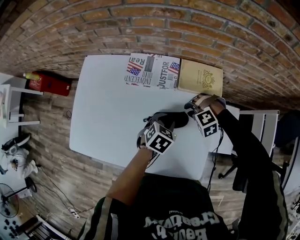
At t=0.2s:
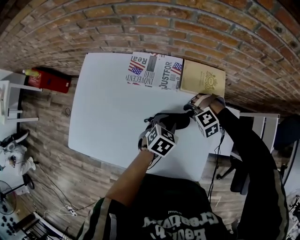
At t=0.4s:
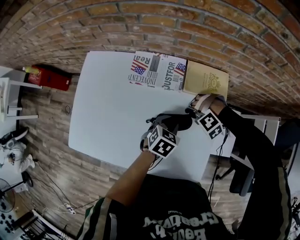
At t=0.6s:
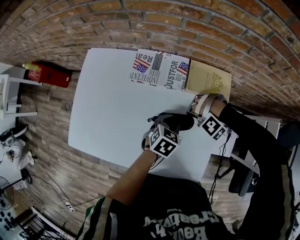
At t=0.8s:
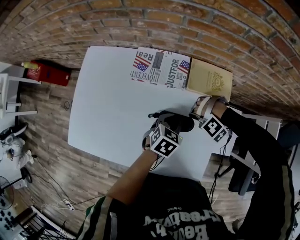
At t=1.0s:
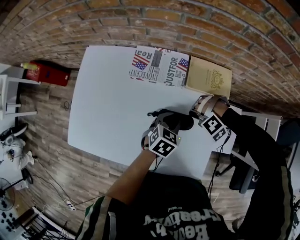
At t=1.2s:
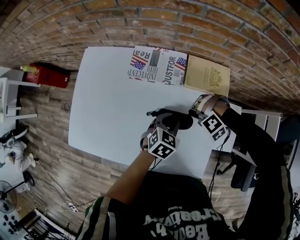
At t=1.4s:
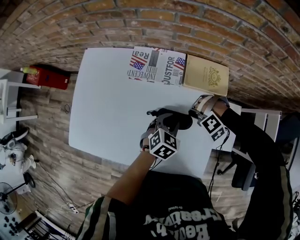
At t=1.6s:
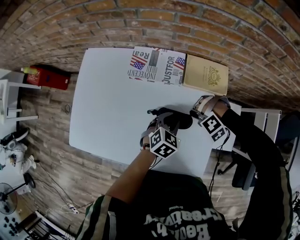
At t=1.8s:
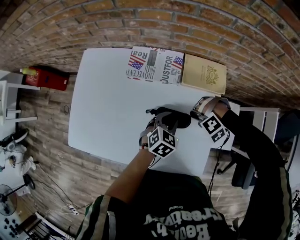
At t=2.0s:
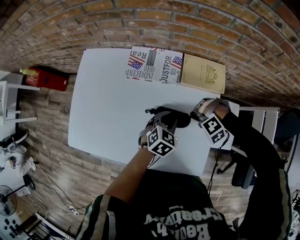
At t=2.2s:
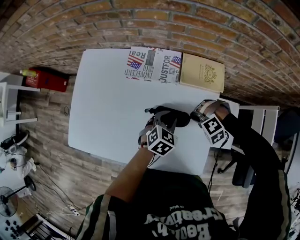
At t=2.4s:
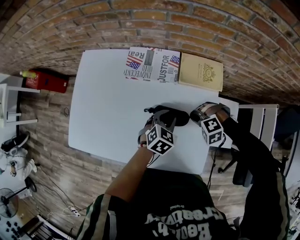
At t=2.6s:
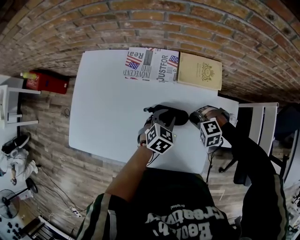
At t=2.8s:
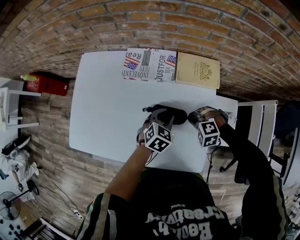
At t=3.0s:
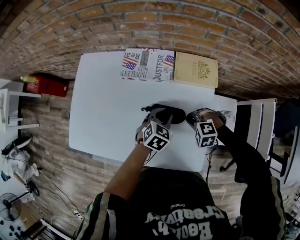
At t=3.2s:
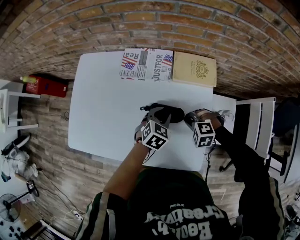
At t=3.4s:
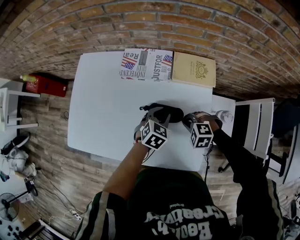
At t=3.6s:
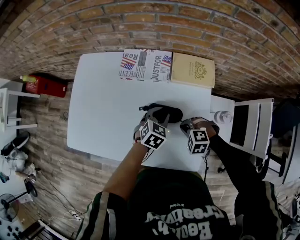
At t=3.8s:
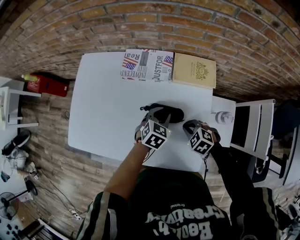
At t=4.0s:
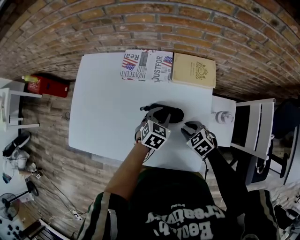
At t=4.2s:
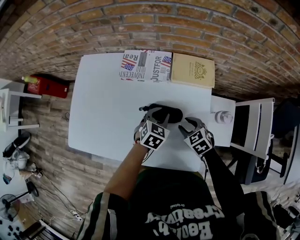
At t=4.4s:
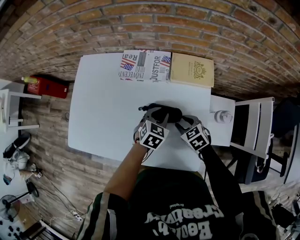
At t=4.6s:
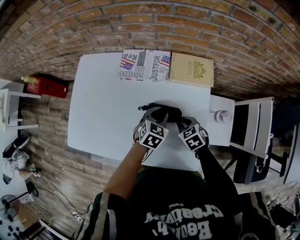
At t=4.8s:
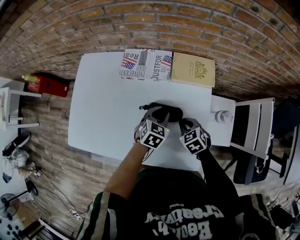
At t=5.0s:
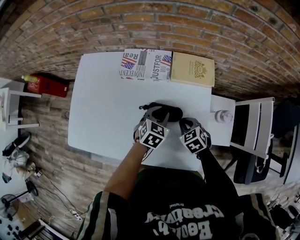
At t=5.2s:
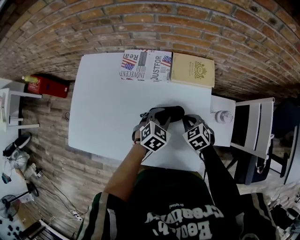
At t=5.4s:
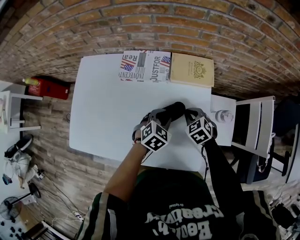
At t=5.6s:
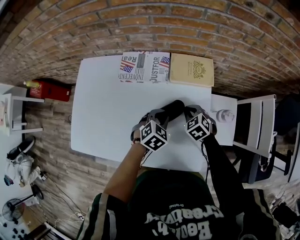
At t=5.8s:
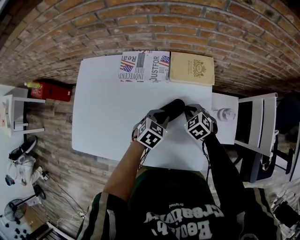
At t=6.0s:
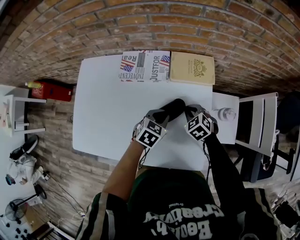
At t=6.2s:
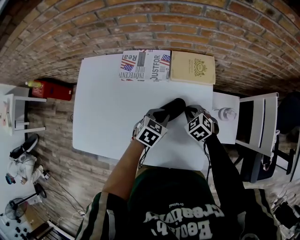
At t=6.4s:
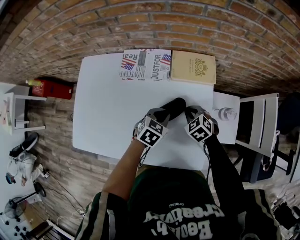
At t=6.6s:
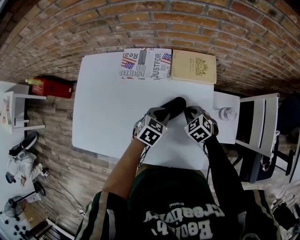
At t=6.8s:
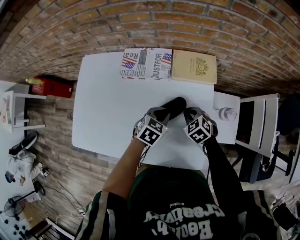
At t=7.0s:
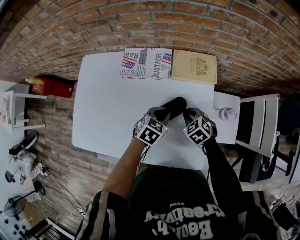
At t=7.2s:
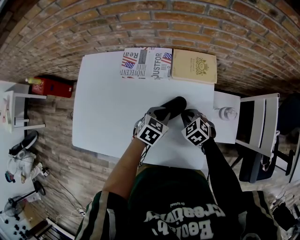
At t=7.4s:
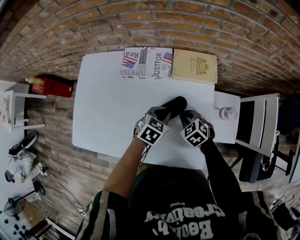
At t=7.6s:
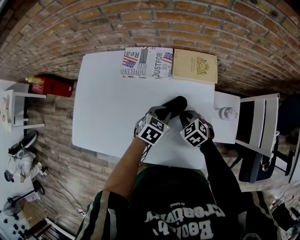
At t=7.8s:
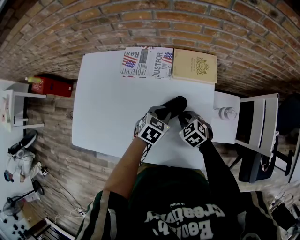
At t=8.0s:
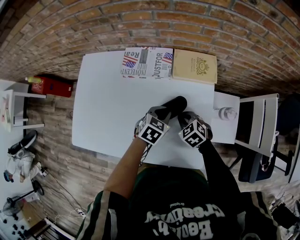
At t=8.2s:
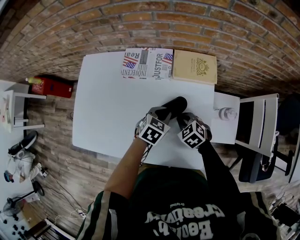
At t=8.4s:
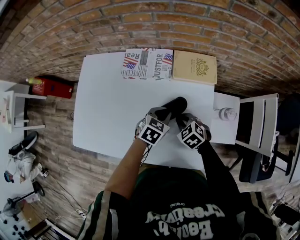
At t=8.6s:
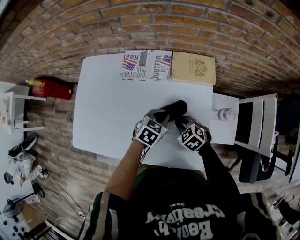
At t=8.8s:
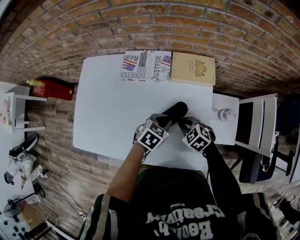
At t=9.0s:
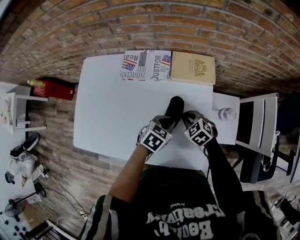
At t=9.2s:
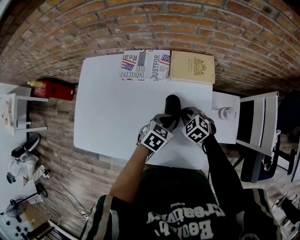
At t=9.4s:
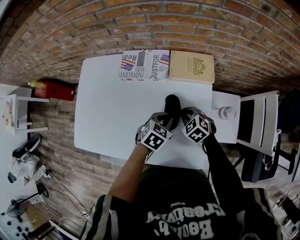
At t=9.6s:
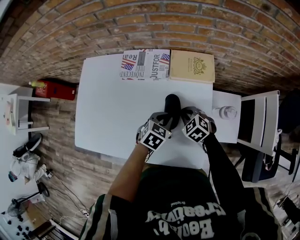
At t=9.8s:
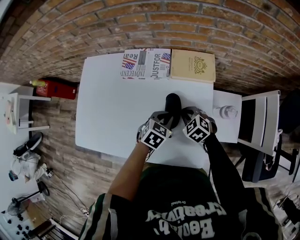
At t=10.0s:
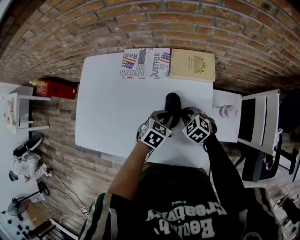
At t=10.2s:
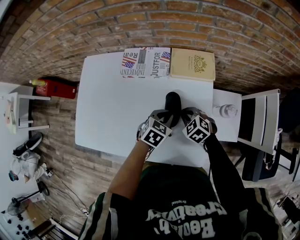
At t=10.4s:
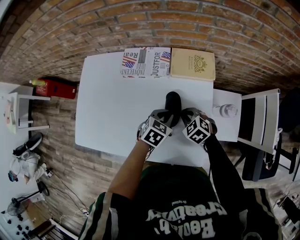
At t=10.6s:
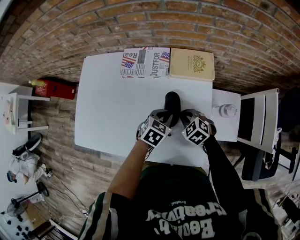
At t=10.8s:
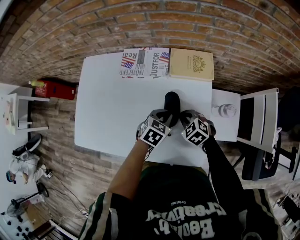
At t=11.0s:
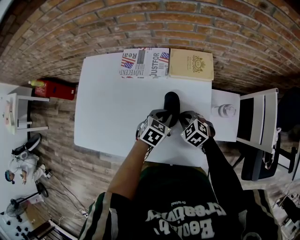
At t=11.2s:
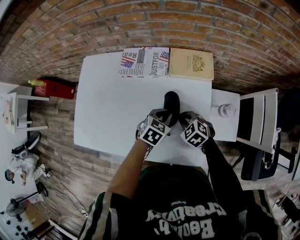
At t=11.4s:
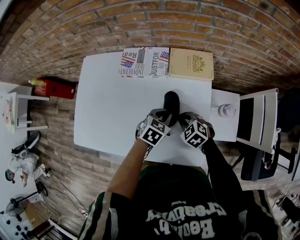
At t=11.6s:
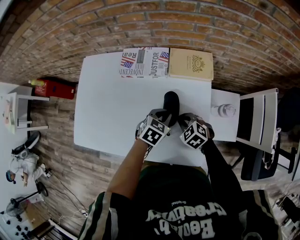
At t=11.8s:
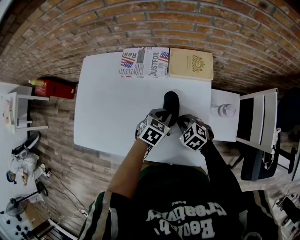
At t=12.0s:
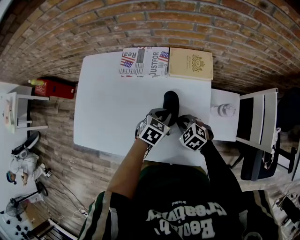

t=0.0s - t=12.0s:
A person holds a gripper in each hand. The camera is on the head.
t=0.0s - t=1.6s: The right gripper closes up.
t=1.6s - t=3.0s: The right gripper swivels some 40 degrees.
t=3.0s - t=4.4s: The right gripper rolls clockwise, seen from behind, by approximately 50 degrees, and opens its fingers.
t=4.4s - t=6.0s: The right gripper goes about 5 cm forward, and closes its fingers.
t=6.0s - t=7.6s: The right gripper ends up roughly 5 cm from where it was.
t=7.6s - t=12.0s: The grippers stay close to where they were, moving slightly.

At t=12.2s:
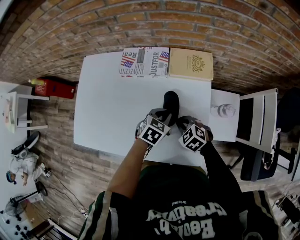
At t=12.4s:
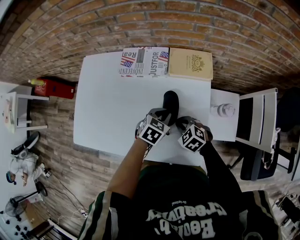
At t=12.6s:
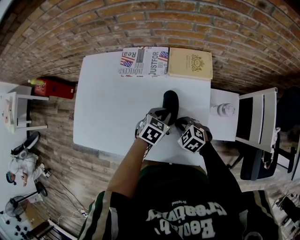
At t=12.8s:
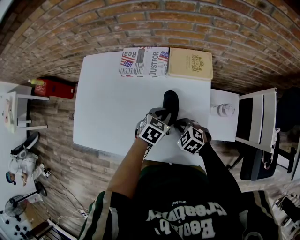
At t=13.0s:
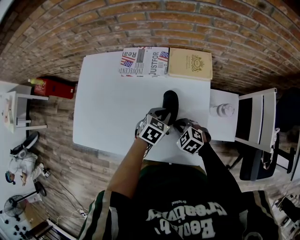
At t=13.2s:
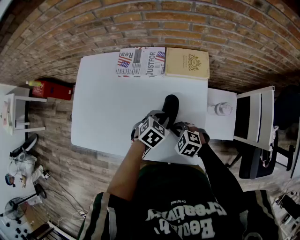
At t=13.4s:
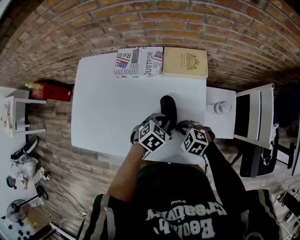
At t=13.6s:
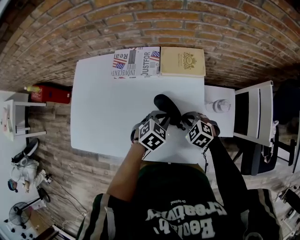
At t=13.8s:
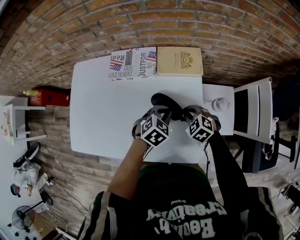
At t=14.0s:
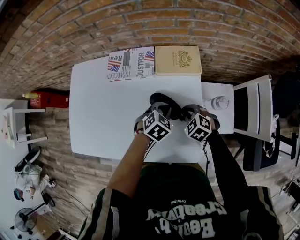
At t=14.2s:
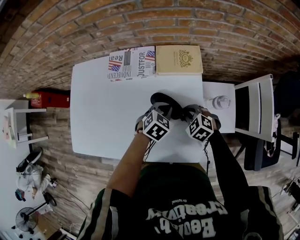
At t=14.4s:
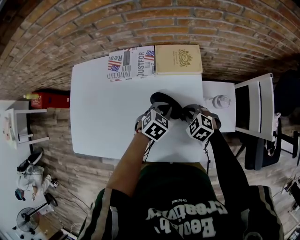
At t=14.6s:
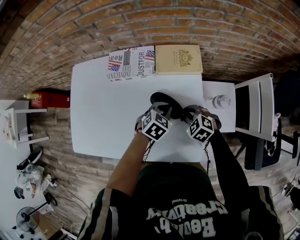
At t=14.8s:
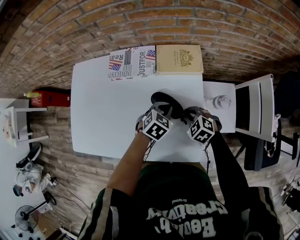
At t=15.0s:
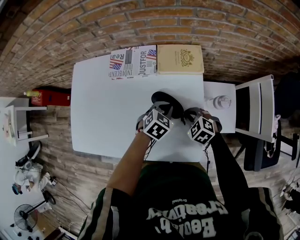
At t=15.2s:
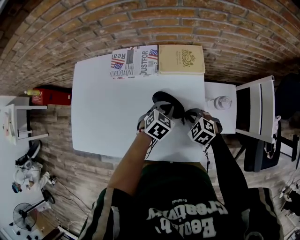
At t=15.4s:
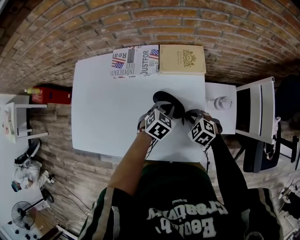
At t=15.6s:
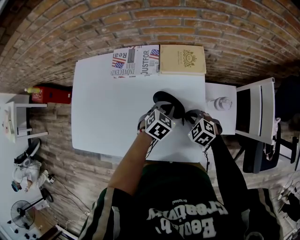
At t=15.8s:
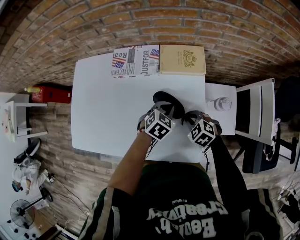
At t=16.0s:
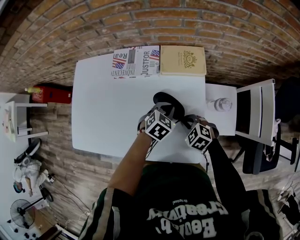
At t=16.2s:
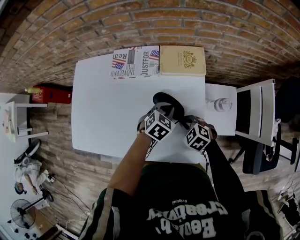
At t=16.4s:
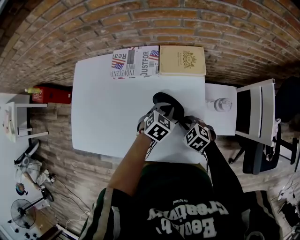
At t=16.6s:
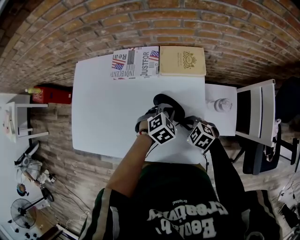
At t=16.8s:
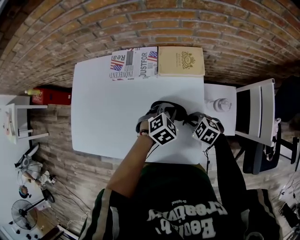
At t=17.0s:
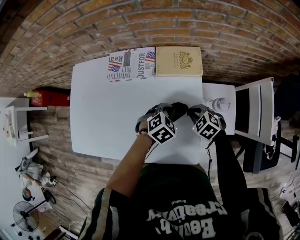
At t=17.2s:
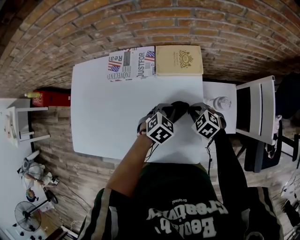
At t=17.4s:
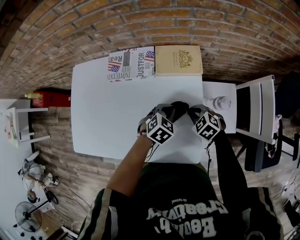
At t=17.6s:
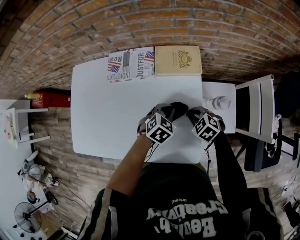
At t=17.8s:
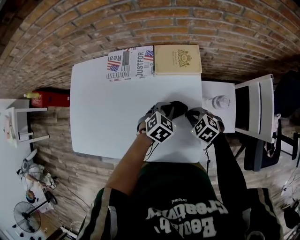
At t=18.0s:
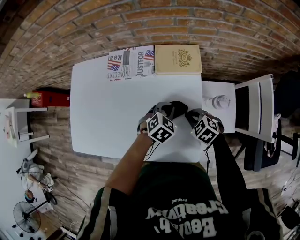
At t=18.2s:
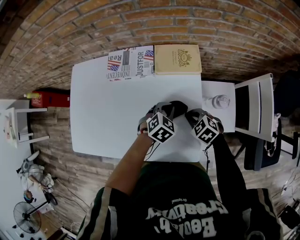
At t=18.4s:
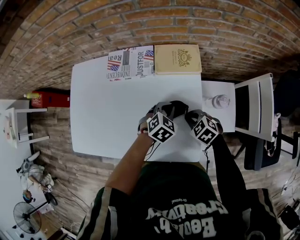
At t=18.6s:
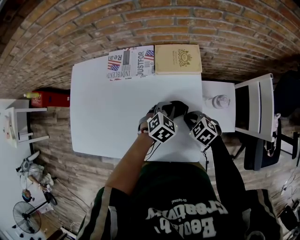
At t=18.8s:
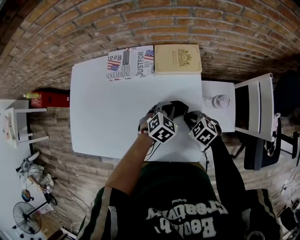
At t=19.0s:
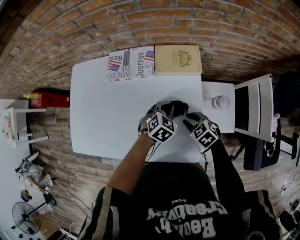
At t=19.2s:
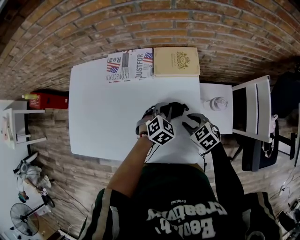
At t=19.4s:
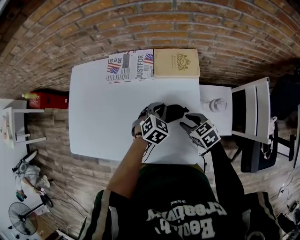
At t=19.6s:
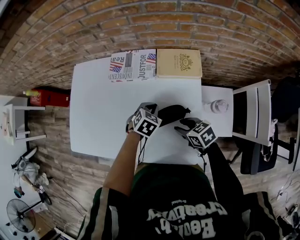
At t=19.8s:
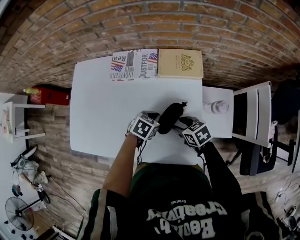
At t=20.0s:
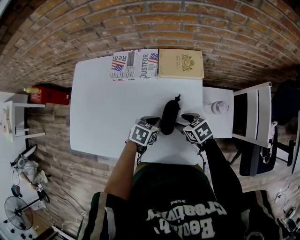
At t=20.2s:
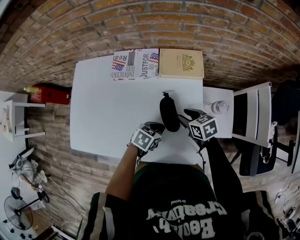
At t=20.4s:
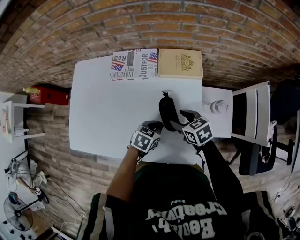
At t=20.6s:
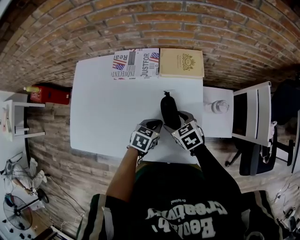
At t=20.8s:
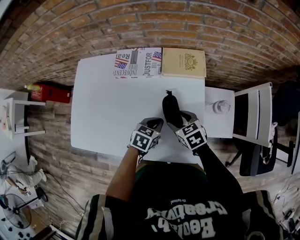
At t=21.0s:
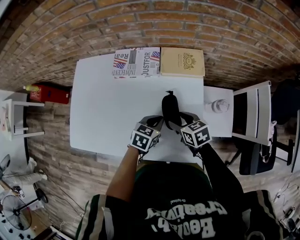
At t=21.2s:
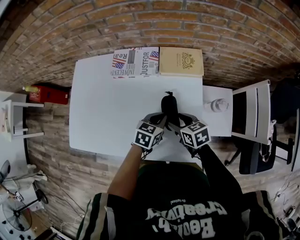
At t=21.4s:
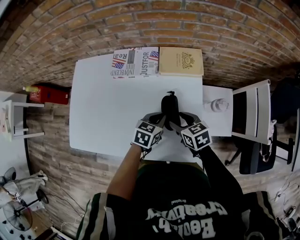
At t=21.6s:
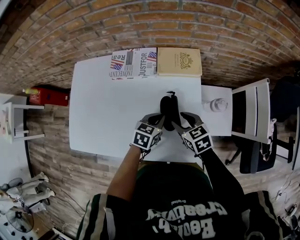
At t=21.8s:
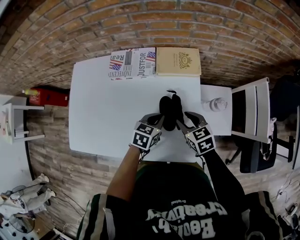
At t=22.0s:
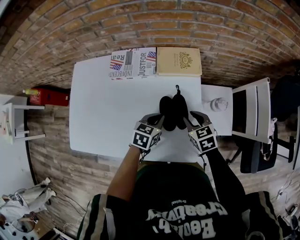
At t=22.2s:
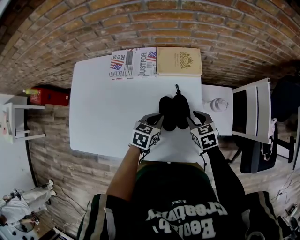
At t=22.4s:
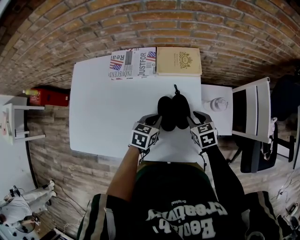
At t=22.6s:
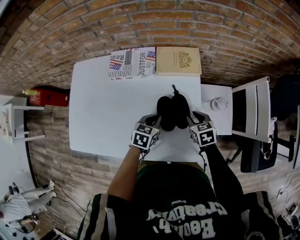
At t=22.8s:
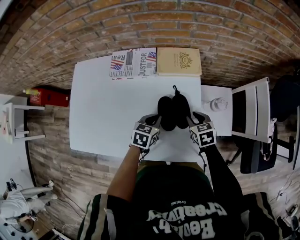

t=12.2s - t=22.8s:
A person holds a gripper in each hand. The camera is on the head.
t=12.2s - t=13.8s: The right gripper is displaced to the right by about 5 cm.
t=13.8s - t=15.2s: There are only small adjustments of the grippers.
t=15.2s - t=18.2s: The grippers make only small movements.
t=18.2s - t=19.8s: Both grippers travel together to the left, about 5 cm. The left gripper swivels roughly 20 degrees. Meanwhile the right gripper swivels roughly 30 degrees, and opens its fingers.
t=19.8s - t=21.2s: There are only small adjustments of the grippers.
t=21.2s - t=22.8s: The right gripper moves to the right, approximately 10 cm, and closes up.

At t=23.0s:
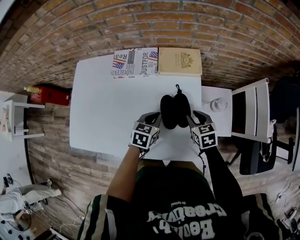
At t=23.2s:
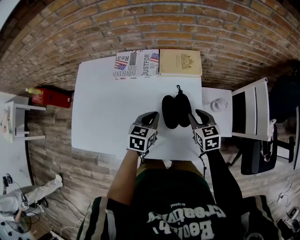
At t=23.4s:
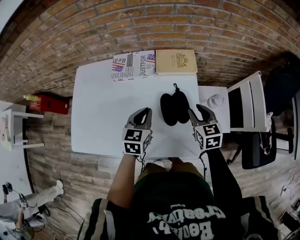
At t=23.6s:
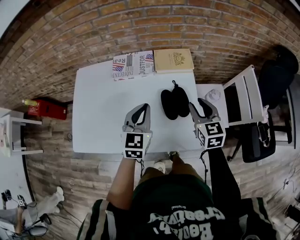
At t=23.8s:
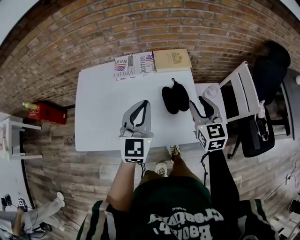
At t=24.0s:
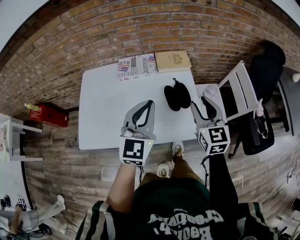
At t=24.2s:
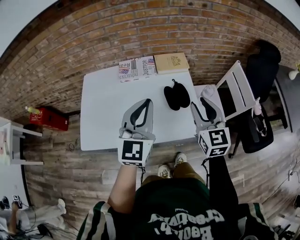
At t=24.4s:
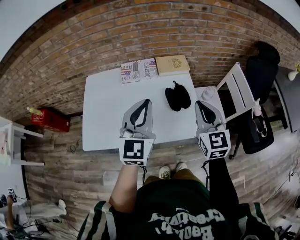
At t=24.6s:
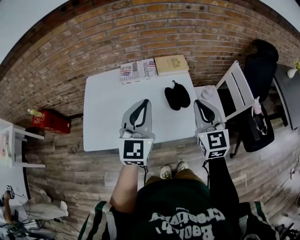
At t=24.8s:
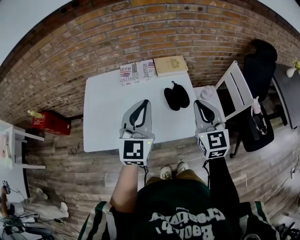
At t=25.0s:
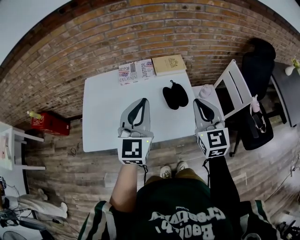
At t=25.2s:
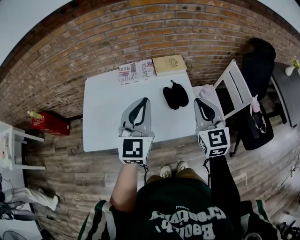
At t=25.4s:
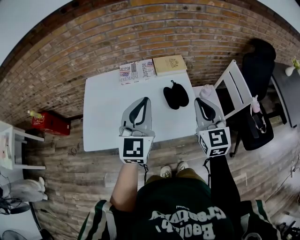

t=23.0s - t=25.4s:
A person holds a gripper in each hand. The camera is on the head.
t=23.0s - t=24.2s: Both grippers travel together upward and backward, roughly 35 cm. The right gripper tilts its fingers about 30 degrees upward, while the left gripper tilts its fingers roughly 40 degrees upward.
t=24.2s - t=25.4s: The right gripper closes its fingers.
